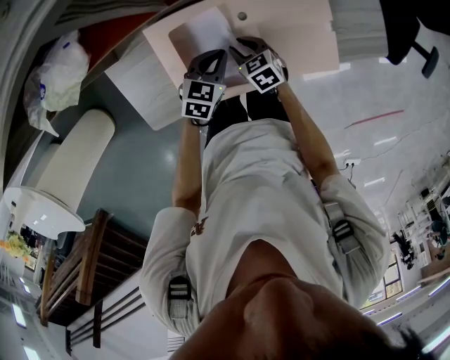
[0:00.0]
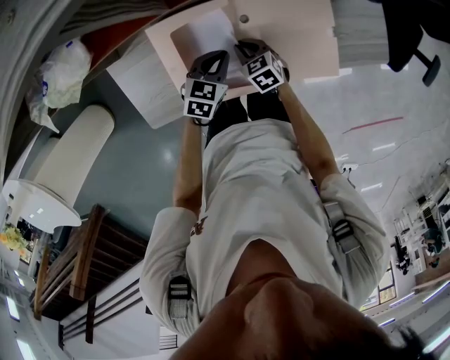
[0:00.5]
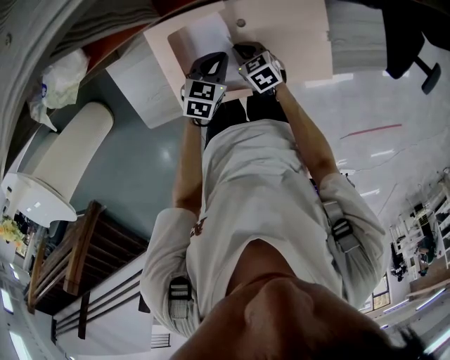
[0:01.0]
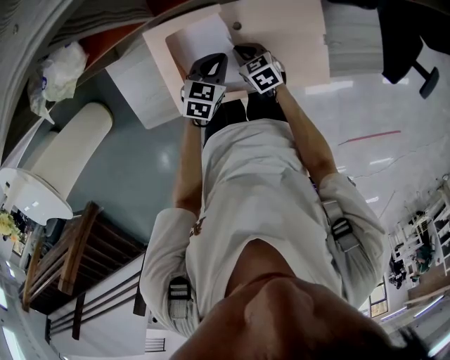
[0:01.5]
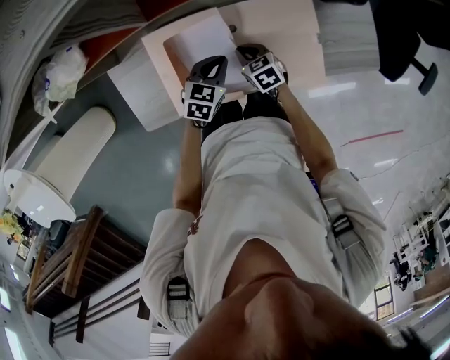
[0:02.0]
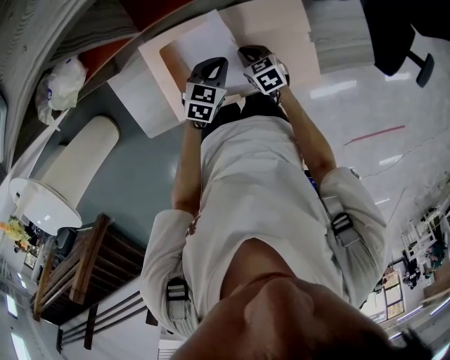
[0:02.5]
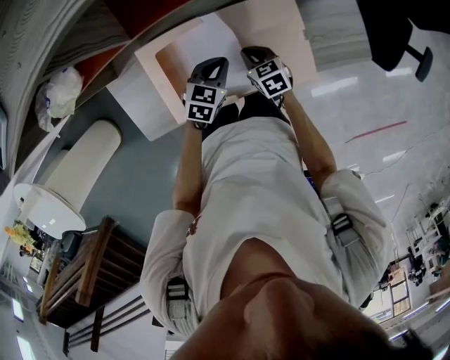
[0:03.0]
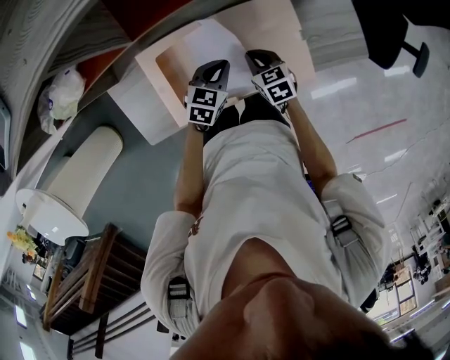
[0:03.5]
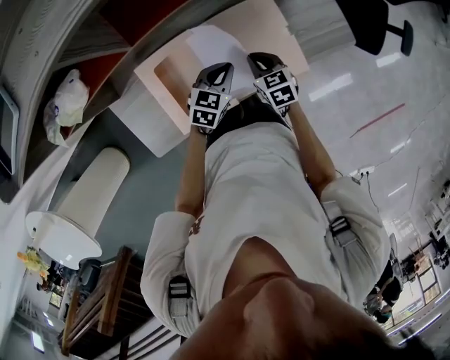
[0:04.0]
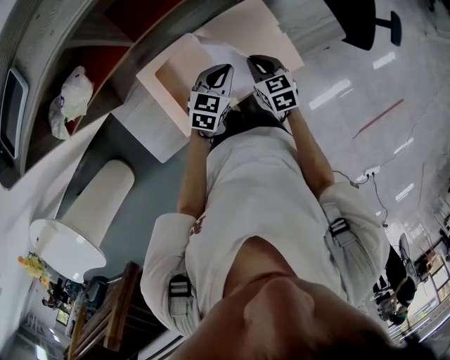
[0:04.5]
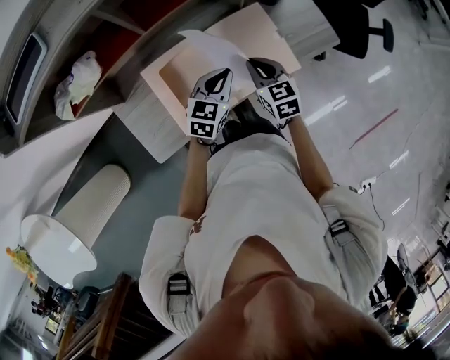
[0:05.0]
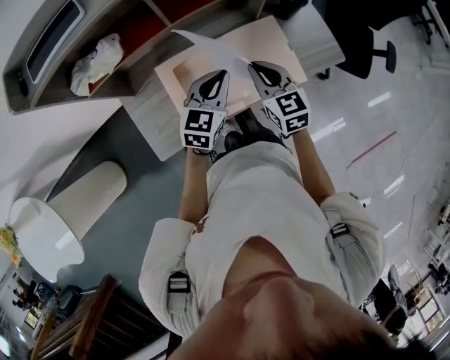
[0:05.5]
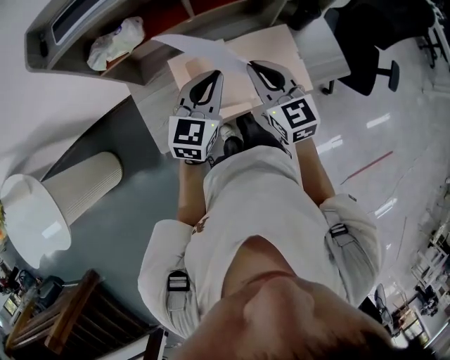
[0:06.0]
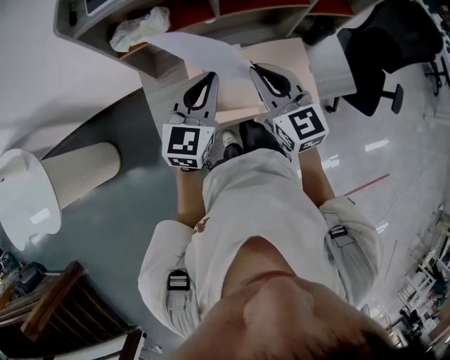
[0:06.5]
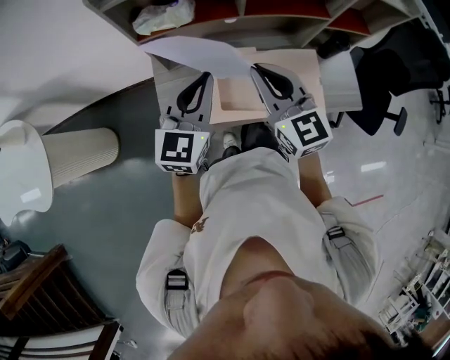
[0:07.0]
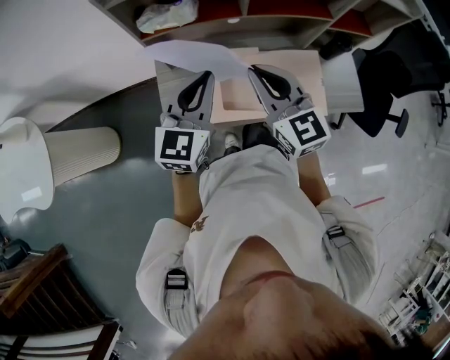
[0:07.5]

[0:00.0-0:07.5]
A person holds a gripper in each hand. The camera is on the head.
0:00.0 to 0:02.0: The right gripper closes.
0:02.0 to 0:04.0: The right gripper moves to the right and upward, approximately 10 cm, and swivels some 20 degrees. Meanwhile the left gripper is displaced to the right by roughly 5 cm.
0:04.0 to 0:05.5: Both grippers travel together upward, about 20 cm. The left gripper changes its angle by some 20 degrees. The right gripper swivels roughly 20 degrees.
0:05.5 to 0:07.5: The left gripper goes about 20 cm to the left and upward, and changes its angle by some 30 degrees. The right gripper goes roughly 20 cm upward and to the left, and rotates about 30 degrees.

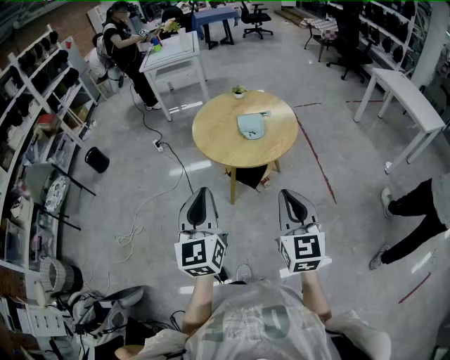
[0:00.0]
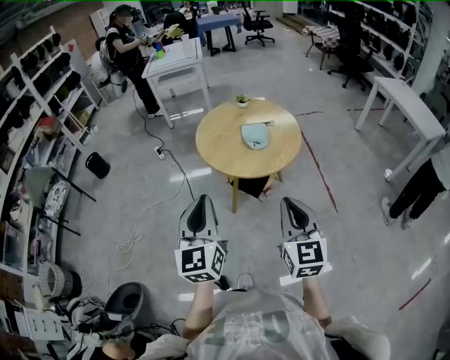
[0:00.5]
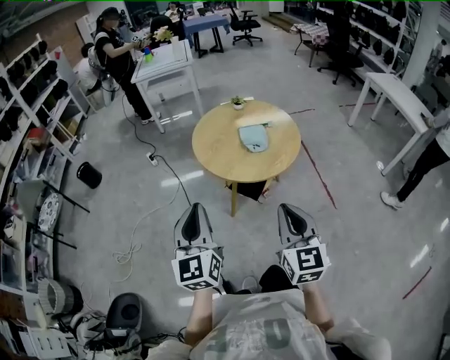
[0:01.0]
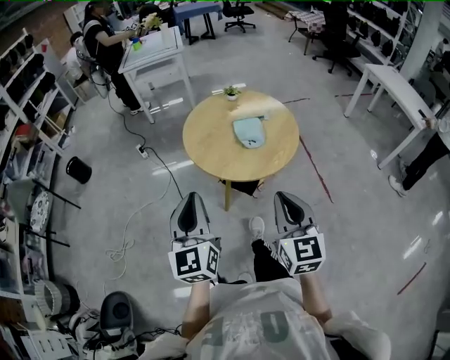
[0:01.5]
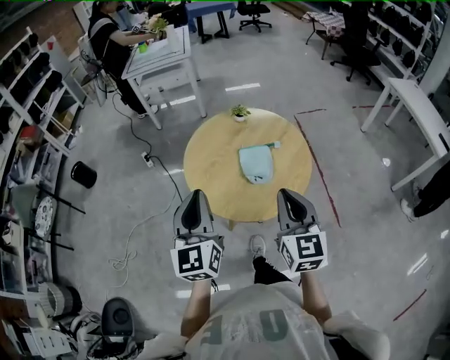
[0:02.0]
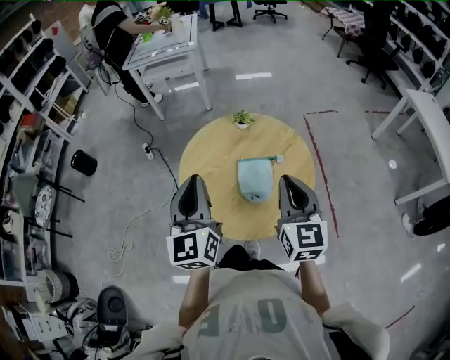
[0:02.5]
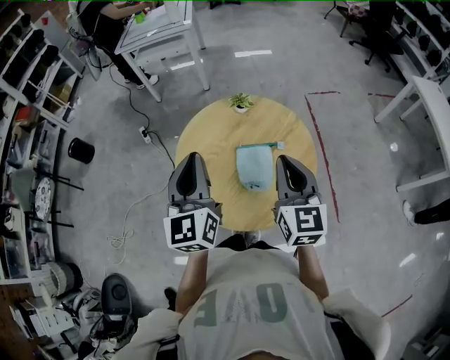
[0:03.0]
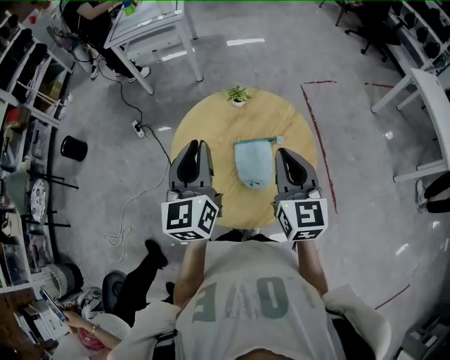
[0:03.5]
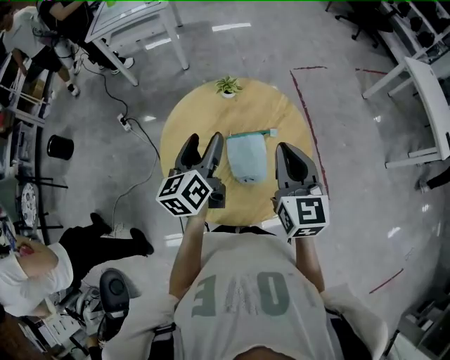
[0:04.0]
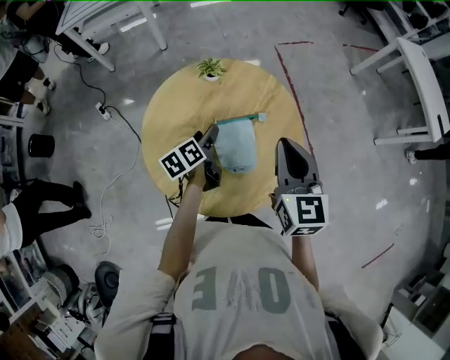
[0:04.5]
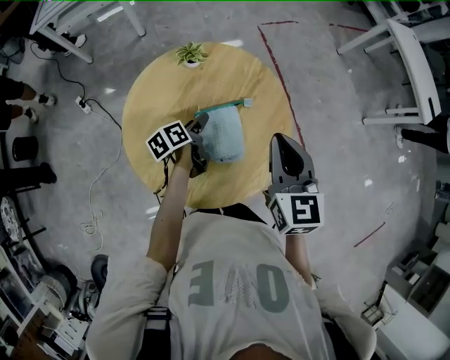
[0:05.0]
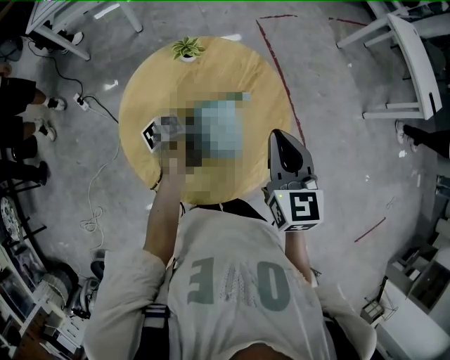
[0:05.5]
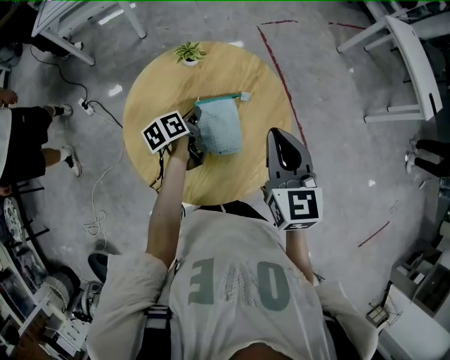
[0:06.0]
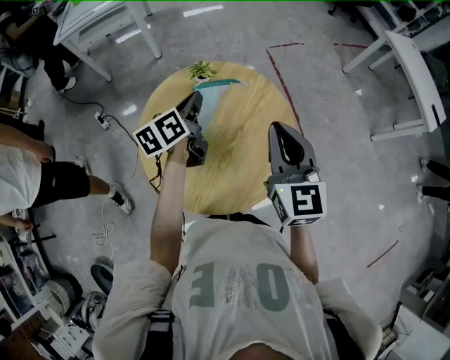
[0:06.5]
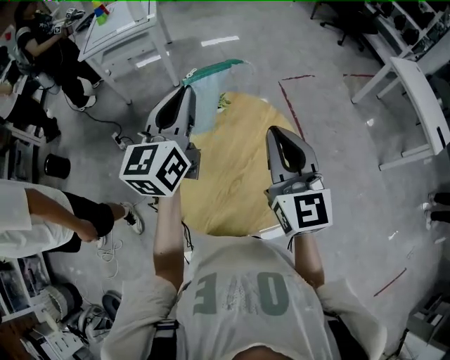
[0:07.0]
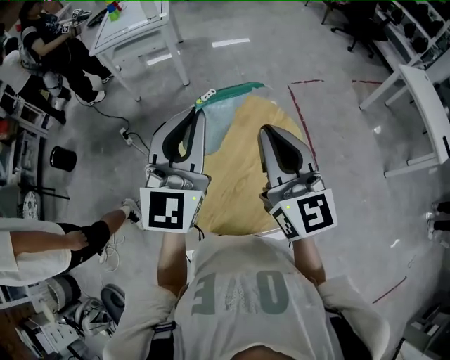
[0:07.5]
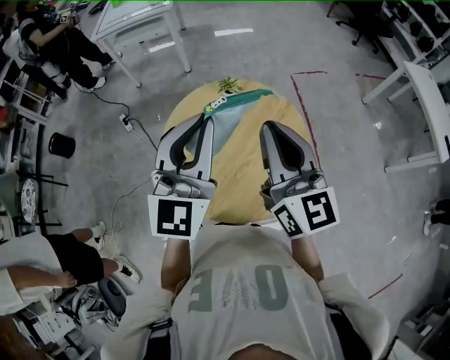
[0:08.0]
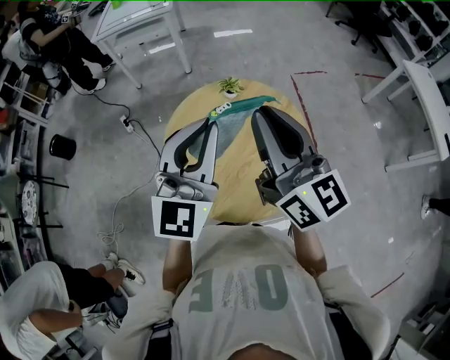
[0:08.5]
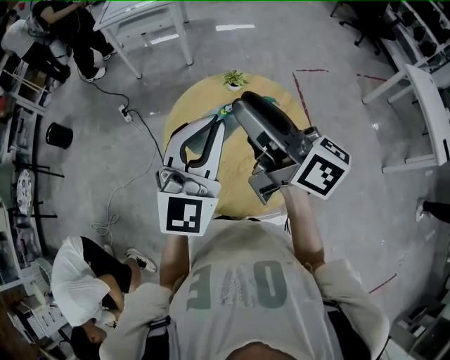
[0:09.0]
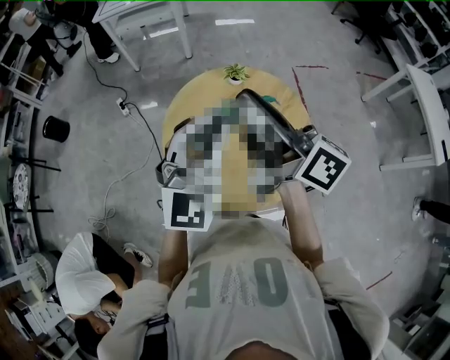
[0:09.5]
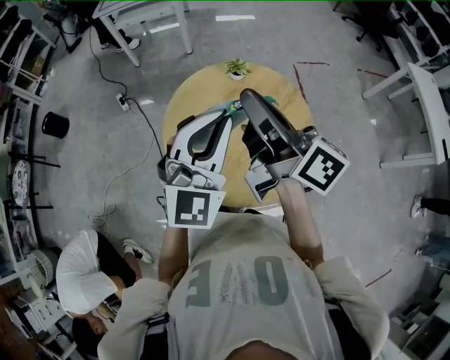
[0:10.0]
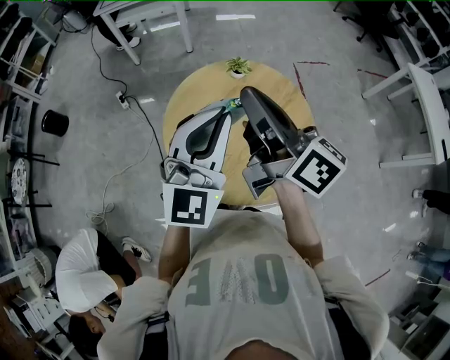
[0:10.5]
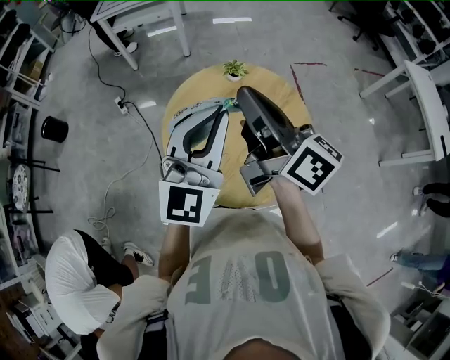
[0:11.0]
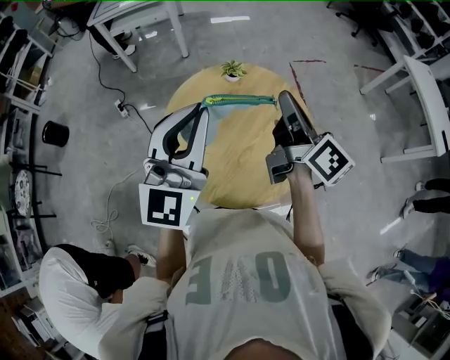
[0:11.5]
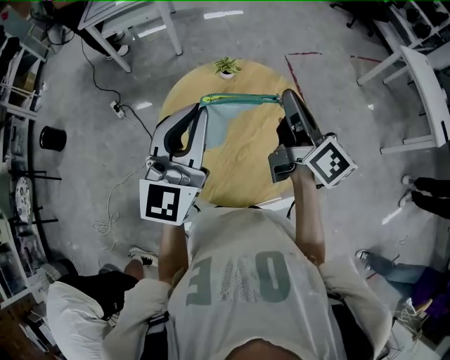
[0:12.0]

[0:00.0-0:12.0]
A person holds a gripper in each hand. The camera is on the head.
0:00.0 to 0:02.0: Both grippers move forward, some 30 cm.
0:02.0 to 0:04.0: Both grippers move forward, roughly 25 cm. The left gripper swivels some 40 degrees, and opens its fingers.
0:04.0 to 0:06.0: The left gripper goes some 20 cm downward, rotates roughly 40 degrees, and closes its fingers.
0:06.0 to 0:08.0: The right gripper travels upward and to the left by roughly 15 cm, and turns by about 30 degrees, while the left gripper goes approximately 40 cm upward, and rolls clockwise, seen from behind, by some 70 degrees.
0:08.0 to 0:10.0: The left gripper changes place by about 5 cm, while the right gripper shifts about 5 cm to the left, rotates around the line of its fingers by approximately 50 degrees, clockwise from behind, and opens and closes again.
0:10.0 to 0:12.0: The right gripper heads to the right and downward, covering roughly 15 cm, and swivels approximately 30 degrees. The left gripper rotates roughly 20 degrees.

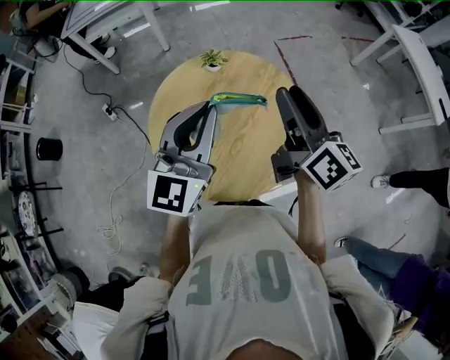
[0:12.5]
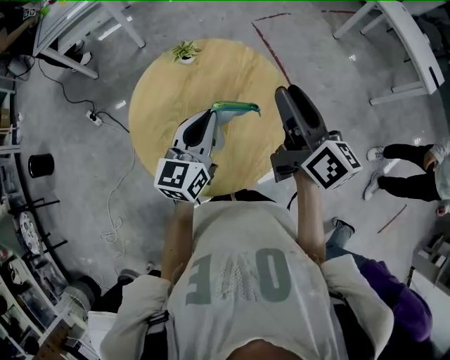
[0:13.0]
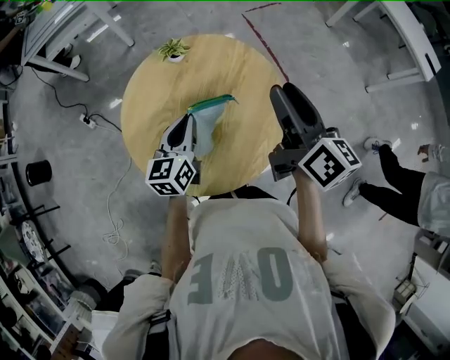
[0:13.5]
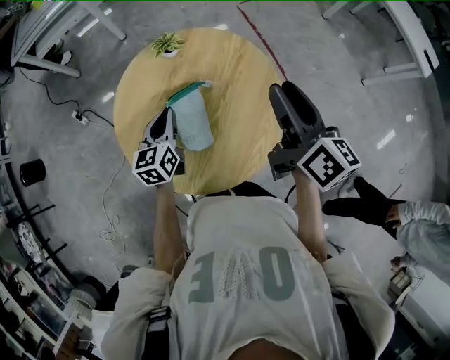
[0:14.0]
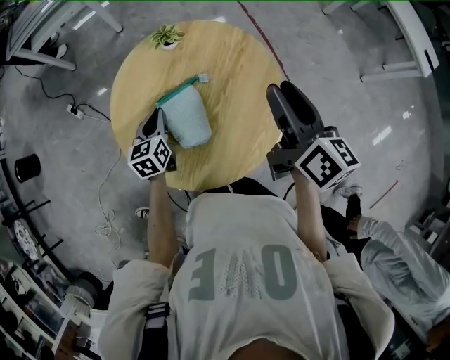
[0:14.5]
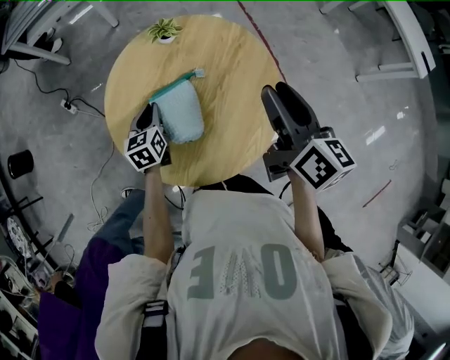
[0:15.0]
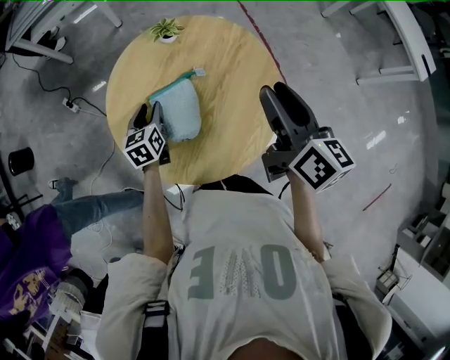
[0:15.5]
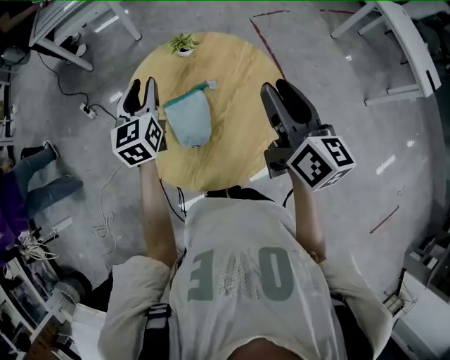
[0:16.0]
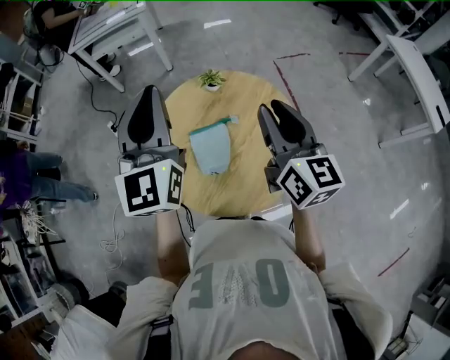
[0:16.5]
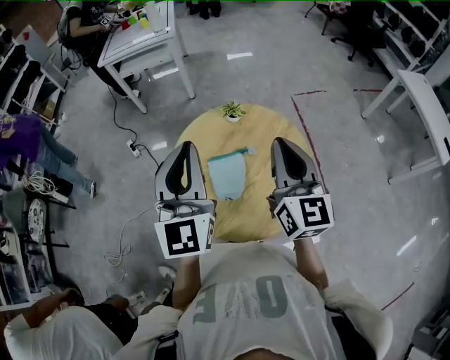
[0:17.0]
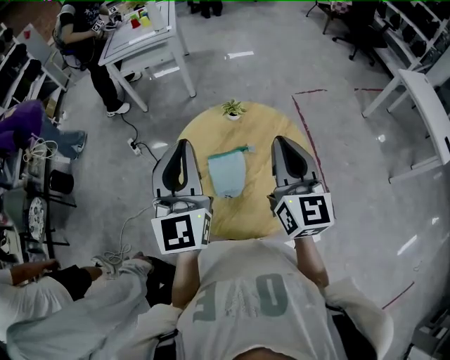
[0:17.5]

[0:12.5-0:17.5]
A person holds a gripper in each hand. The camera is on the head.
0:12.5 to 0:15.0: The right gripper shifts some 10 cm downward; the left gripper moves downward, about 35 cm, and points its fingers about 40 degrees further downward.
0:15.0 to 0:17.5: The left gripper moves upward, roughly 40 cm, tilts its fingers about 40 degrees upward, and opens, then closes again, while the right gripper moves upward and to the left, roughly 15 cm, turns by about 30 degrees, and closes up.

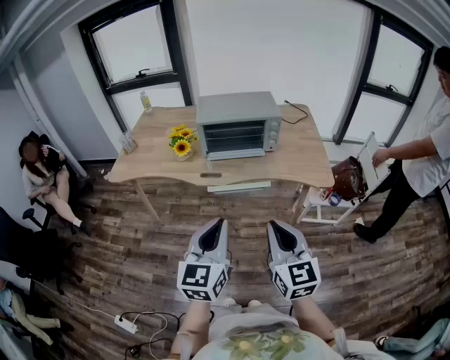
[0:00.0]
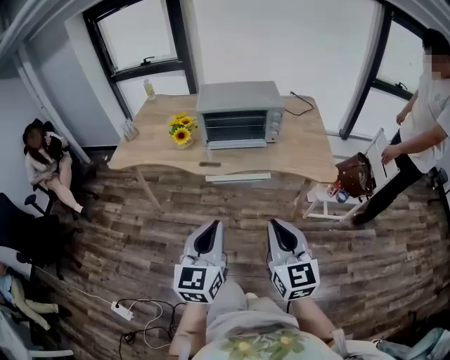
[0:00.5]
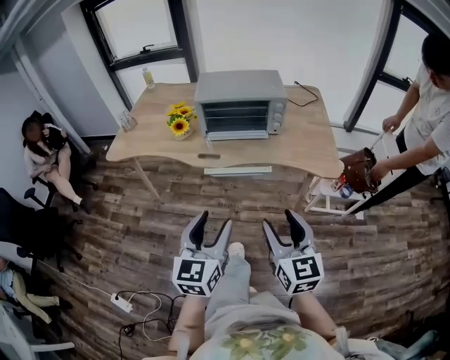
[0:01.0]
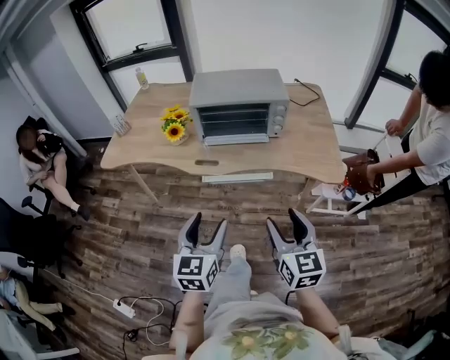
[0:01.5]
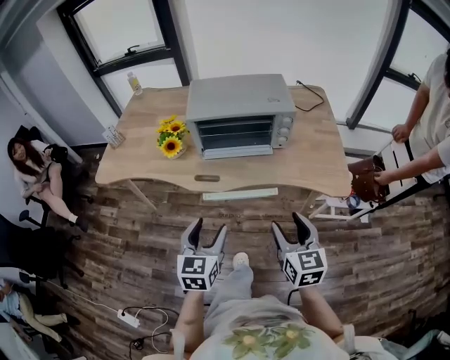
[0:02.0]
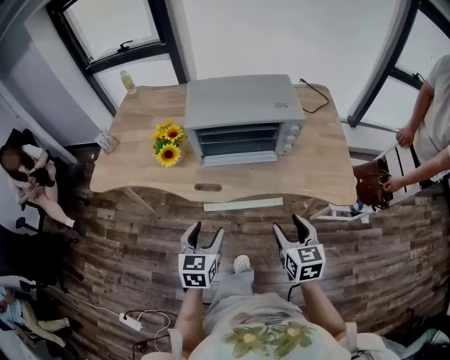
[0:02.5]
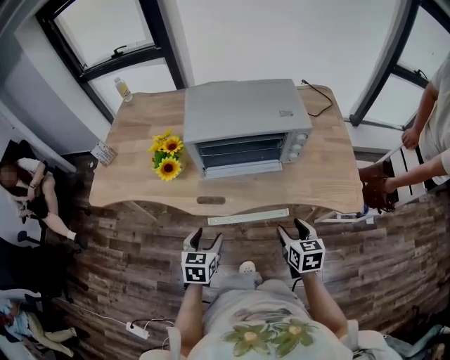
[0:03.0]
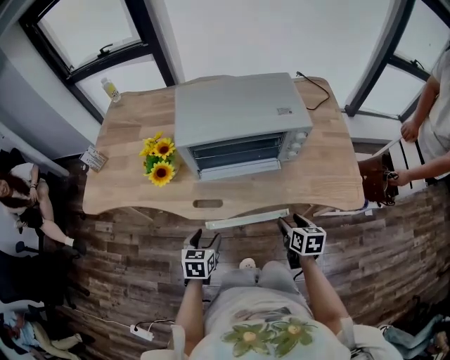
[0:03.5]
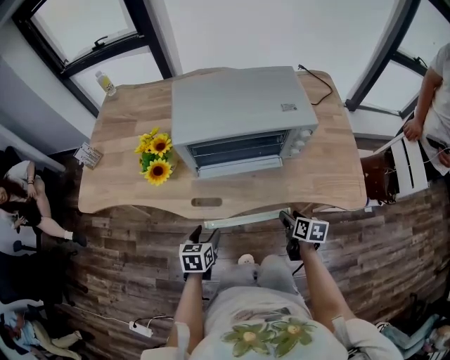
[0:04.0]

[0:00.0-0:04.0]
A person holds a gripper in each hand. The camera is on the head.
0:00.0 to 0:02.0: Both grippers move forward and downward, some 25 cm. The left gripper opens. The right gripper opens its fingers.
0:02.0 to 0:04.0: The two grippers go some 30 cm downward and forward. The right gripper swivels about 40 degrees. Meanwhile the left gripper rotates approximately 30 degrees.
